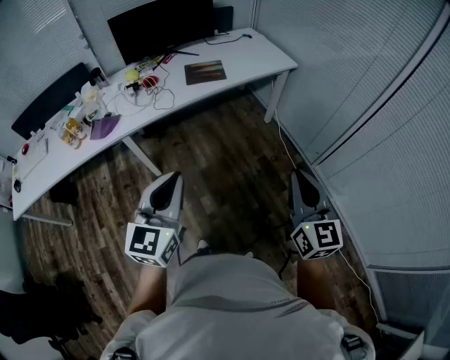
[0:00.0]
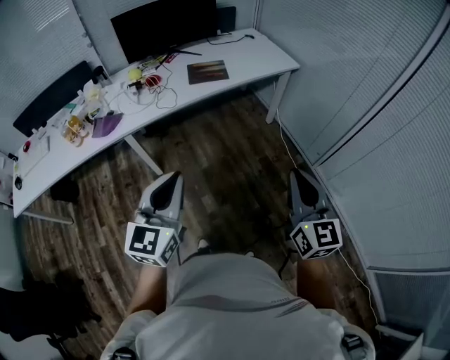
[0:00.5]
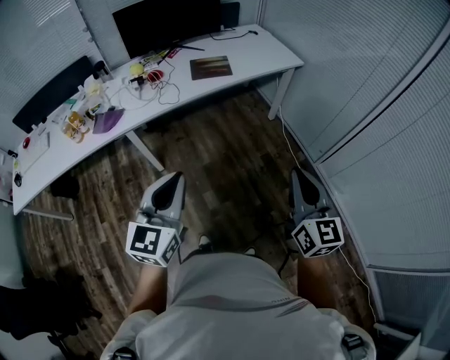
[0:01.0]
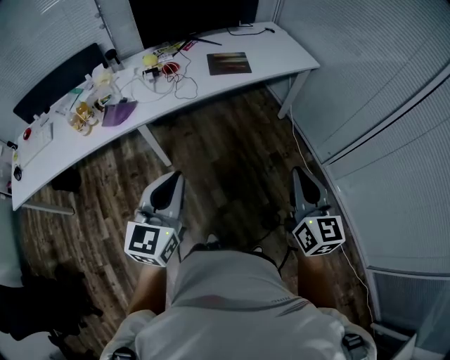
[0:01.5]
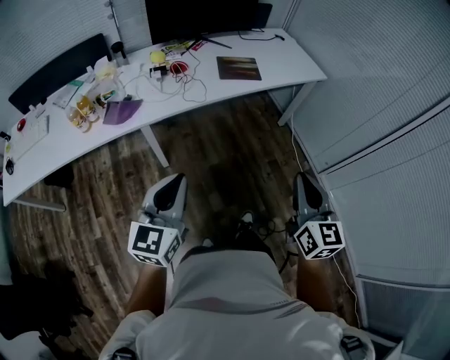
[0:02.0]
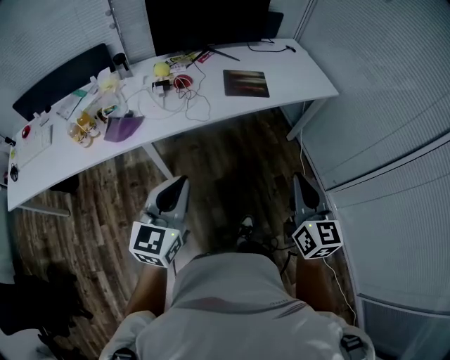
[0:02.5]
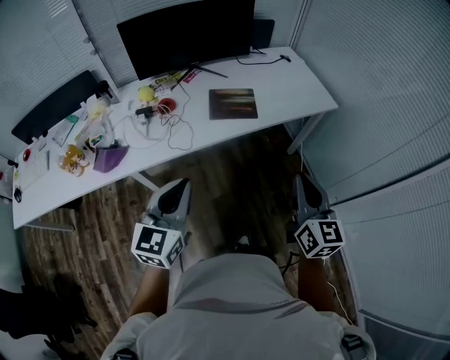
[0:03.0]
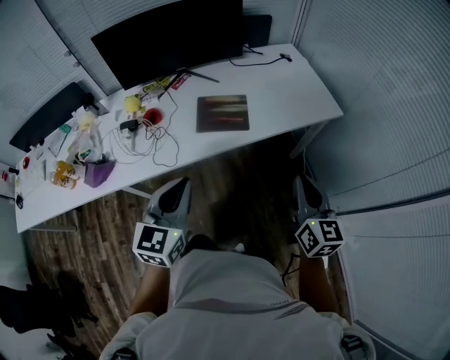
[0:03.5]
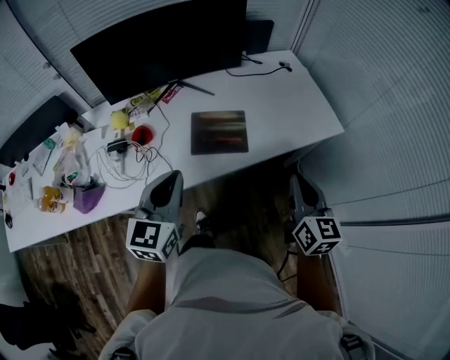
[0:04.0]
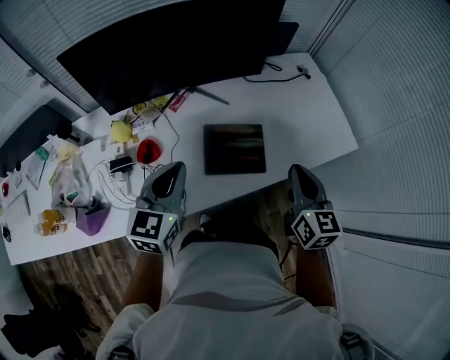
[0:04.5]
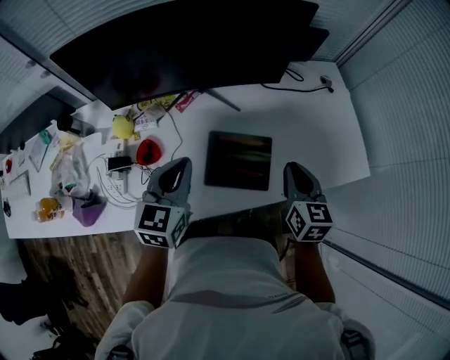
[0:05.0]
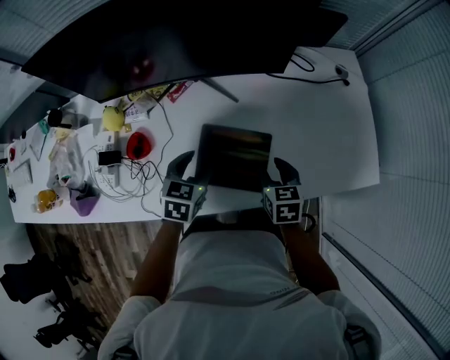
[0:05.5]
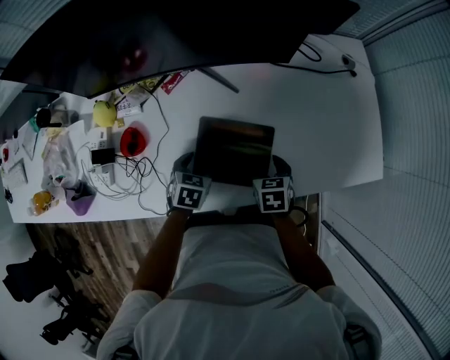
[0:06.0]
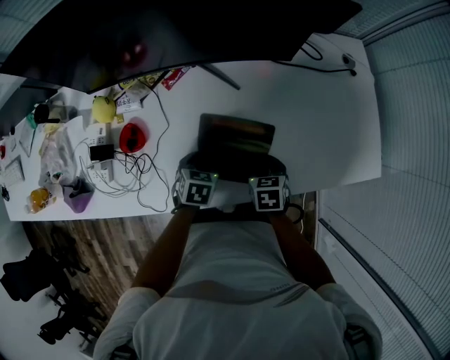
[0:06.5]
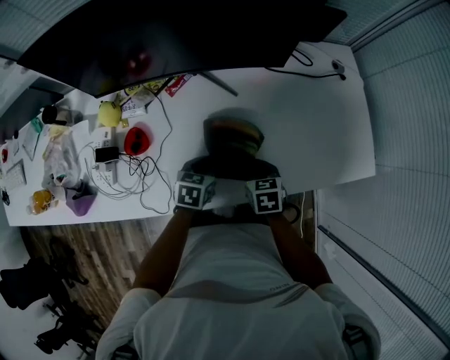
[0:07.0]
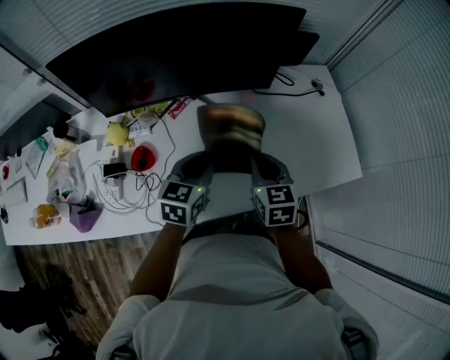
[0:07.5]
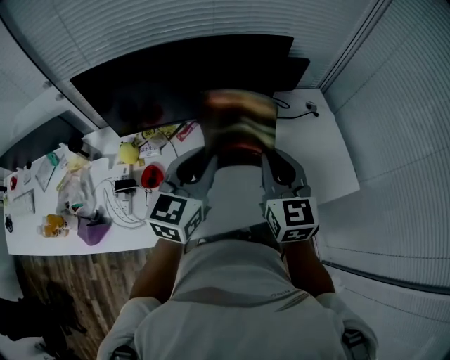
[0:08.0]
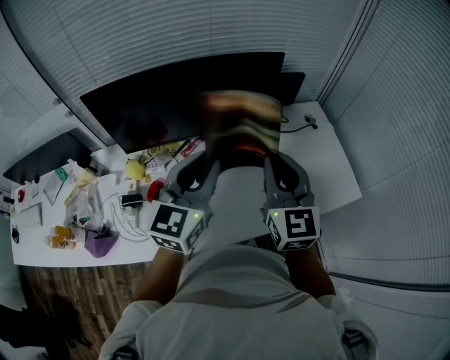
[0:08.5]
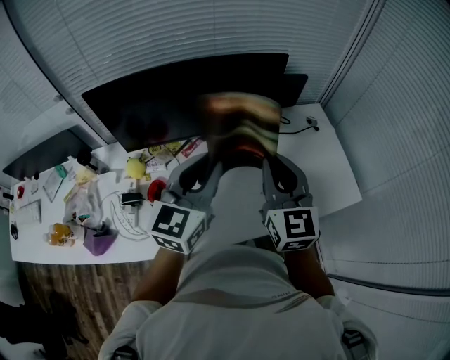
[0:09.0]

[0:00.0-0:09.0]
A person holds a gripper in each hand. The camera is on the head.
0:00.0 to 0:02.0: The two grippers go roughly 20 cm to the left.
0:02.0 to 0:04.5: Both grippers are carried forward, roughly 70 cm.
0:04.5 to 0:07.0: The left gripper travels downward by roughly 25 cm, tilts its fingers approximately 30 degrees downward, and opens, then closes once more. The right gripper shifts approximately 30 cm downward and forward, tips its fingers downward by about 40 degrees, and opens and closes again.
0:07.0 to 0:09.0: The grippers both shift upward by roughly 40 cm. The left gripper points its fingers about 50 degrees further upward; the right gripper angles its fingers upward, by some 50 degrees.

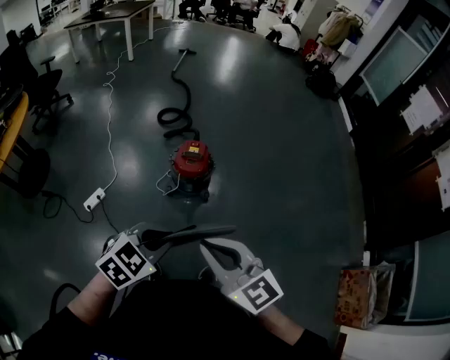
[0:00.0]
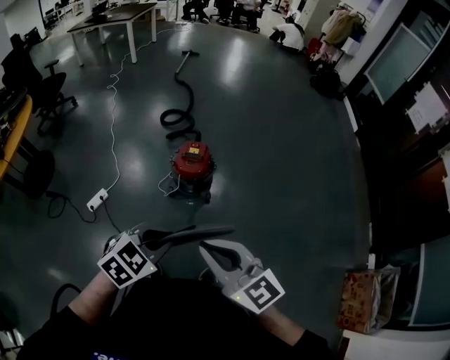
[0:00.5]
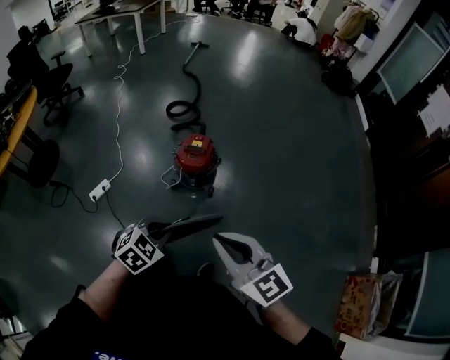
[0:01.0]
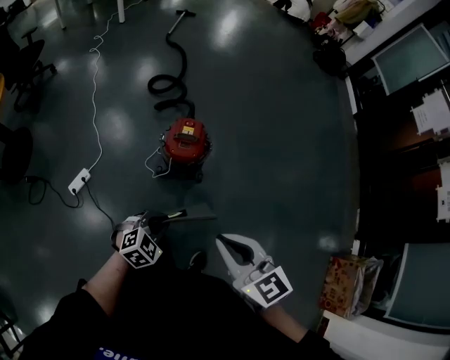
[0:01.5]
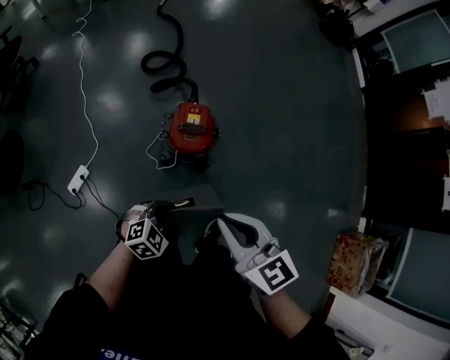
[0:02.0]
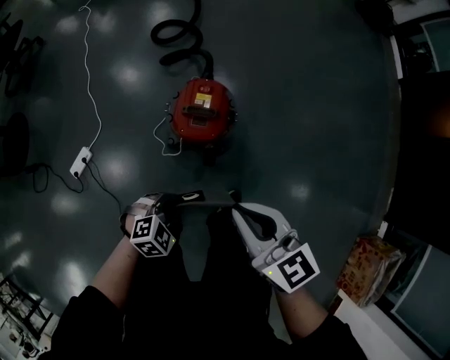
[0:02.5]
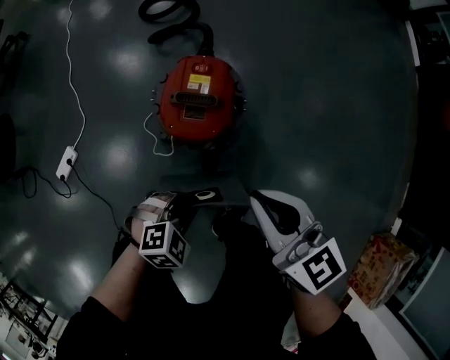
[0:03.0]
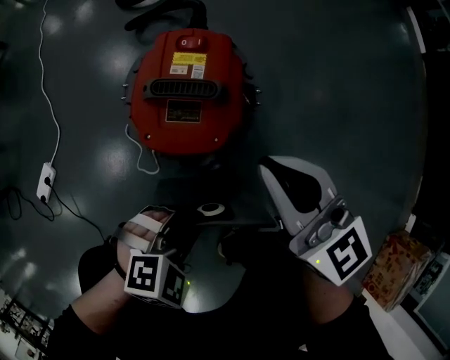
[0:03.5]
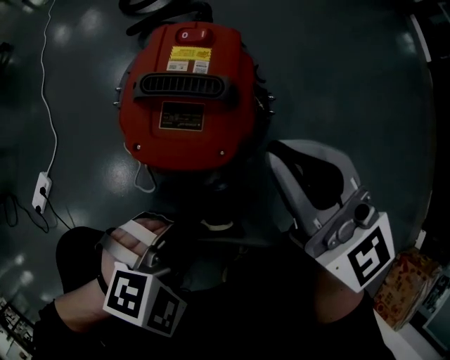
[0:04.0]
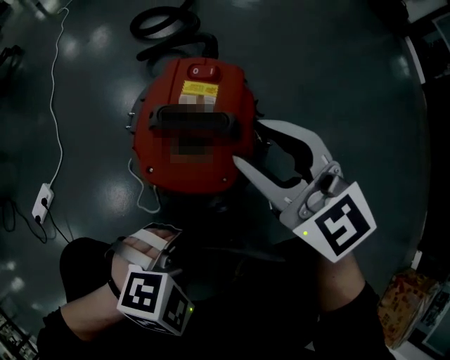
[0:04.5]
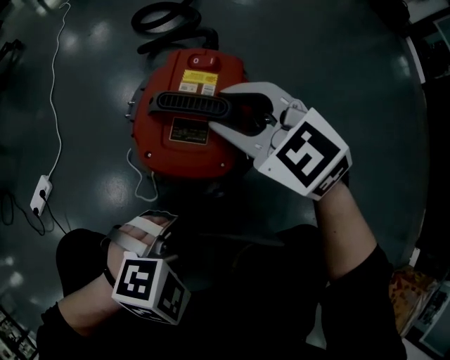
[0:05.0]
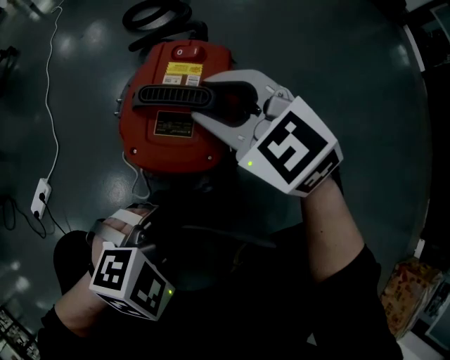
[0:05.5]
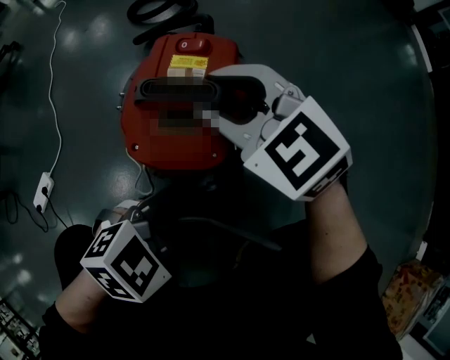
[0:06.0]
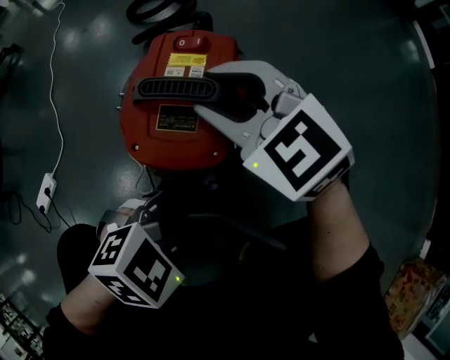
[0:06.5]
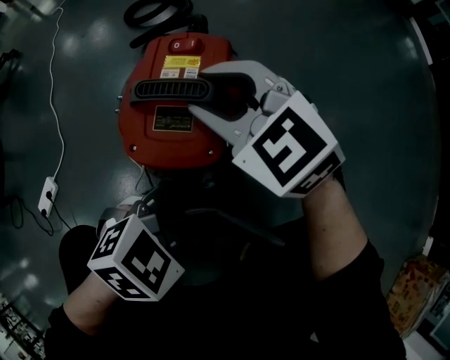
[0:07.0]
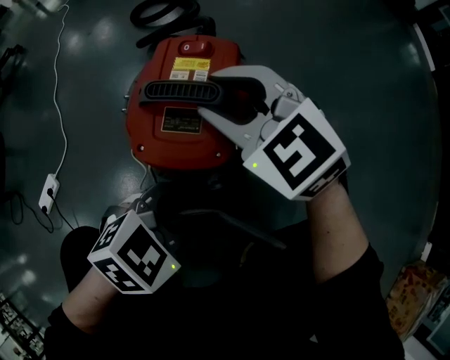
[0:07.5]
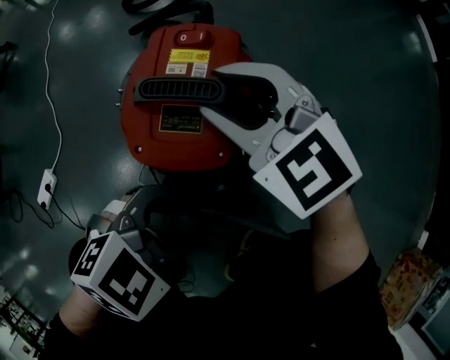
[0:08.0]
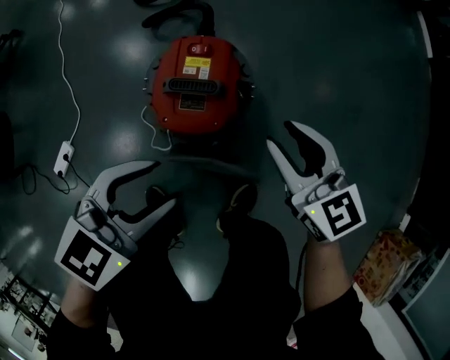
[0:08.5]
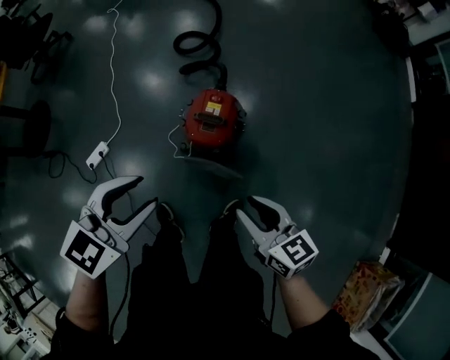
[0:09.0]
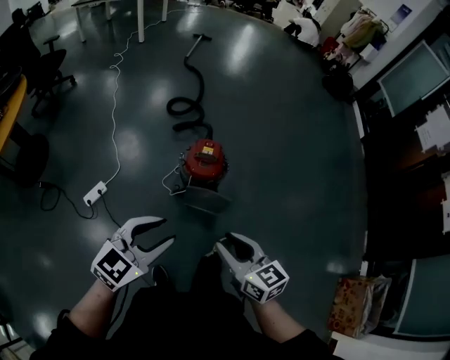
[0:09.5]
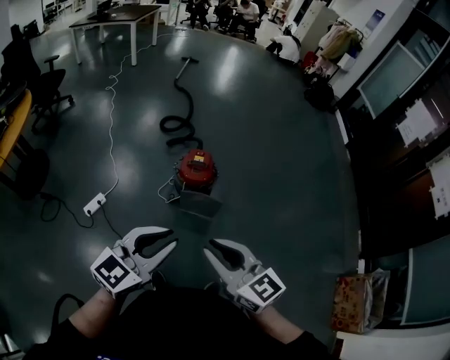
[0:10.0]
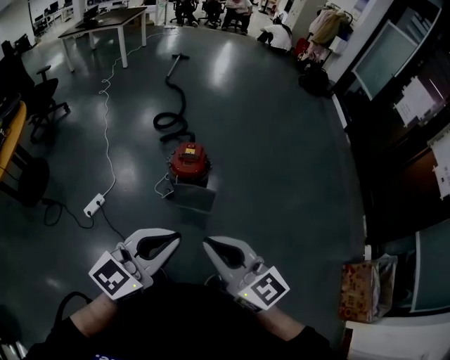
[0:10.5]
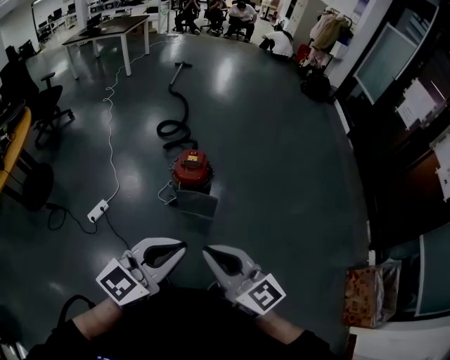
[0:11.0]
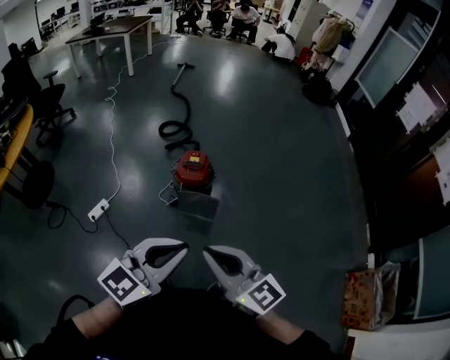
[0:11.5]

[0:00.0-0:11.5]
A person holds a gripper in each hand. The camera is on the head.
0:00.0 to 0:02.0: The right gripper travels forward and downward by about 25 cm. The left gripper travels downward and forward by some 35 cm.
0:02.0 to 0:04.0: The right gripper travels downward and forward by about 50 cm, and changes its angle by some 20 degrees. The left gripper goes approximately 35 cm downward.
0:04.0 to 0:06.0: The right gripper changes place by some 15 cm, rotates some 30 degrees, and opens up.
0:06.0 to 0:07.5: There are only small adjustments of the grippers.
0:07.5 to 0:09.5: Both grippers move upward, roughly 50 cm. The right gripper rotates around the line of its fingers by roughly 40 degrees, clockwise from behind. The left gripper tilts its fingers roughly 30 degrees upward, and opens and closes again.
0:09.5 to 0:11.5: The left gripper travels backward, to the right and upward by roughly 25 cm, and closes, while the right gripper heads upward and backward, covering about 20 cm, turns by approximately 20 degrees, and closes up.

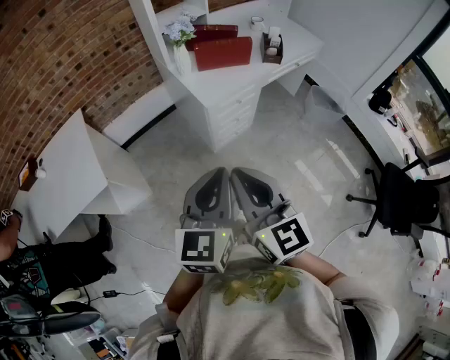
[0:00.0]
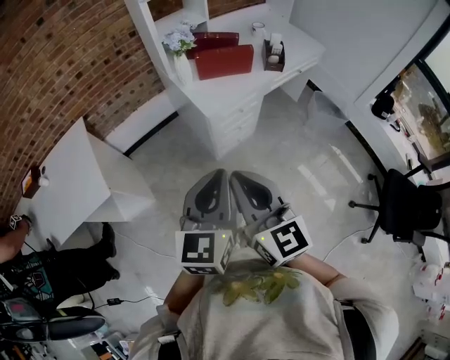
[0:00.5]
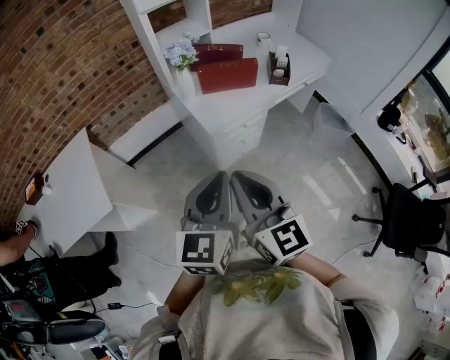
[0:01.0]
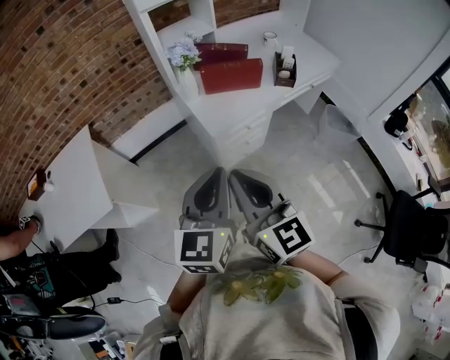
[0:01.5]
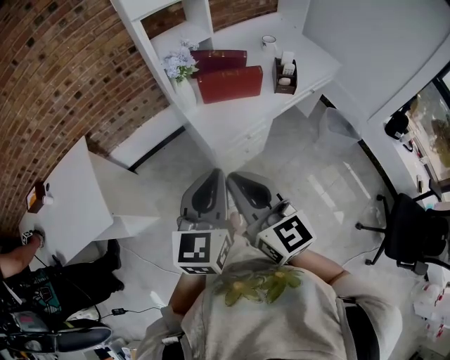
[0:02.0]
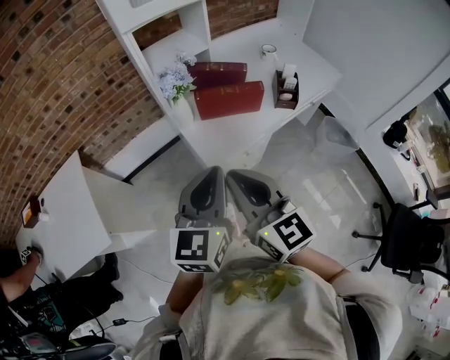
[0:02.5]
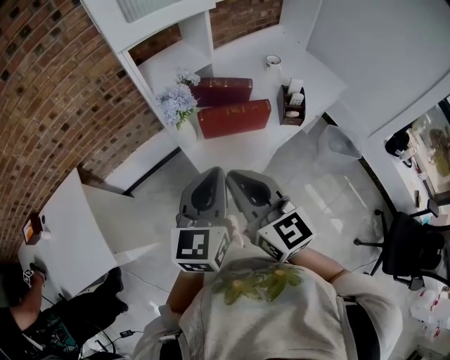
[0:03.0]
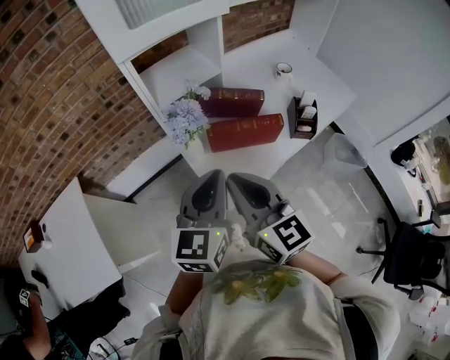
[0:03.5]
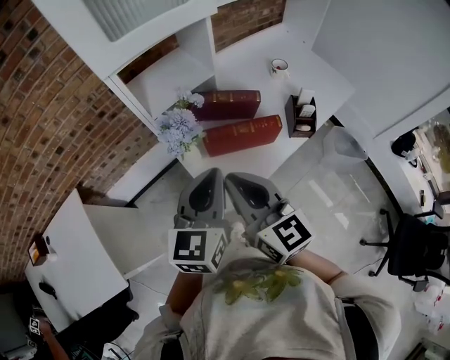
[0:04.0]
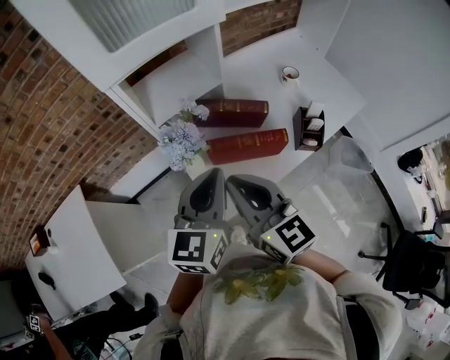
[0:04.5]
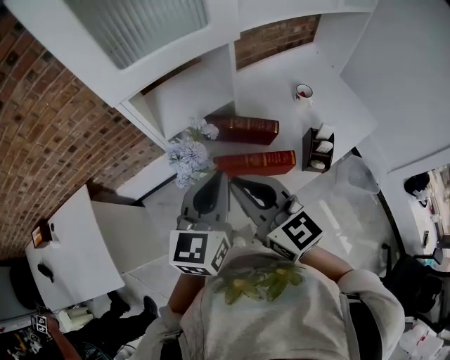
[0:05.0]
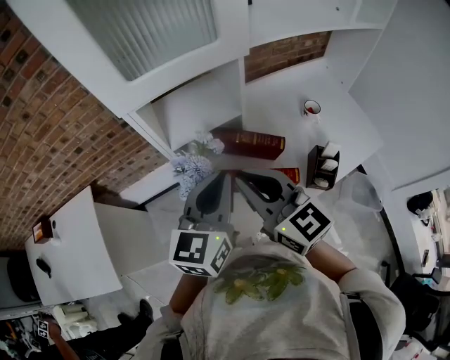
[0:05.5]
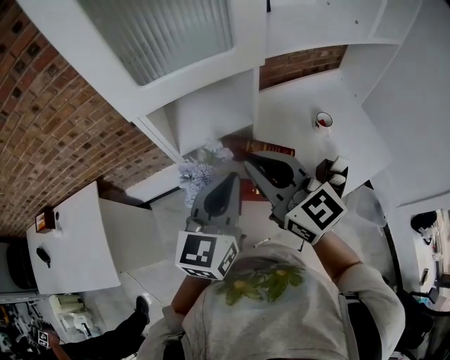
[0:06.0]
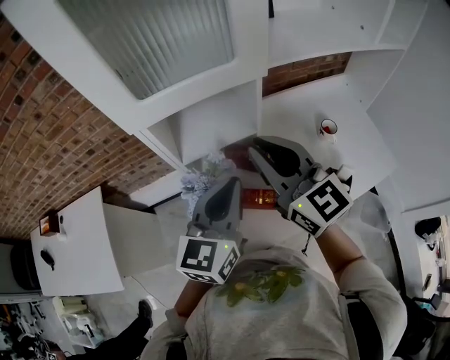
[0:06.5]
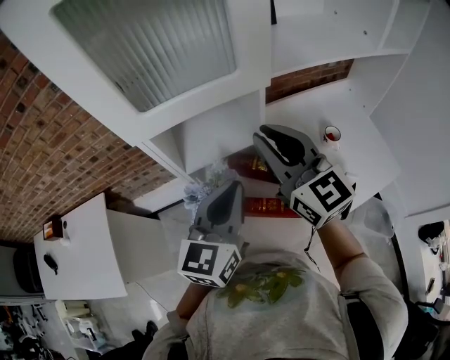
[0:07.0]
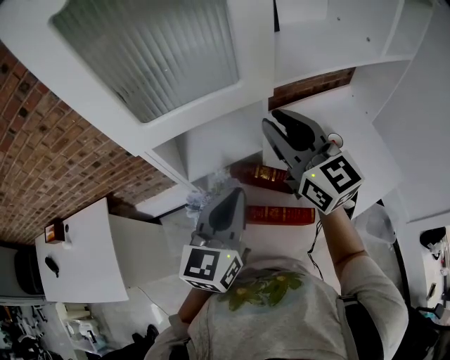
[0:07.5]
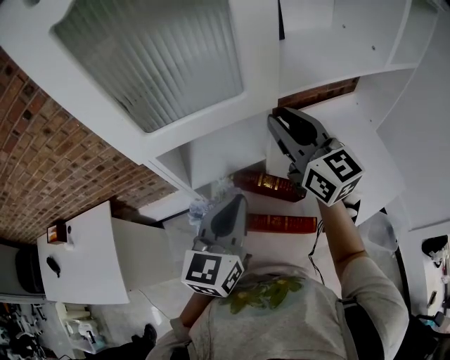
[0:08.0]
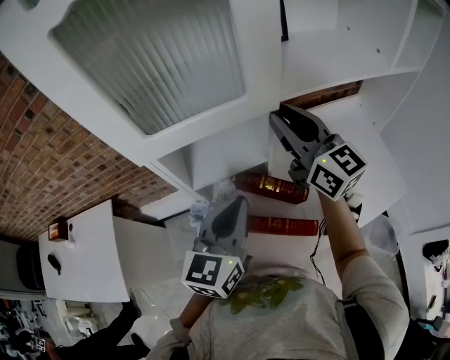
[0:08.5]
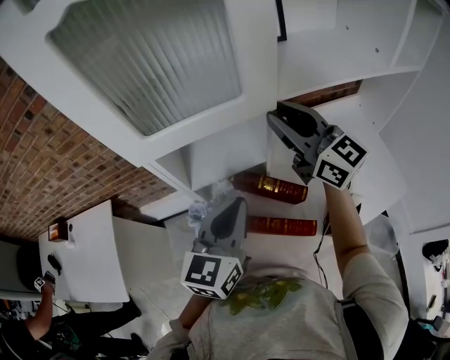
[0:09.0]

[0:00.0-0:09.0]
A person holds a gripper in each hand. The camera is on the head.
0:00.0 to 0:02.0: Both grippers move forward, roughly 20 cm.
0:02.0 to 0:04.5: Both grippers travel together forward, about 35 cm.
0:04.5 to 0:07.0: The right gripper heads forward and upward, covering some 25 cm, and rotates roughly 20 degrees; the left gripper moves forward, roughly 10 cm.
0:07.0 to 0:09.0: The right gripper goes approximately 10 cm forward.
